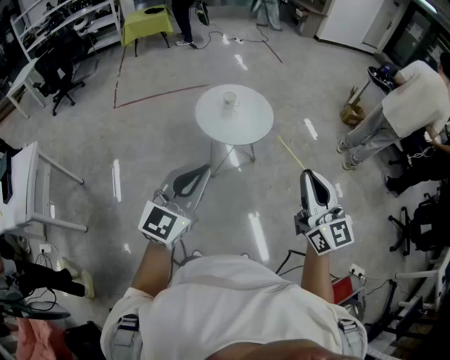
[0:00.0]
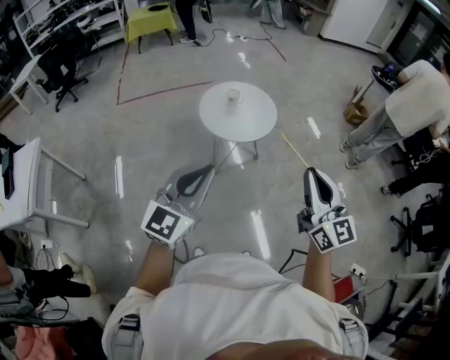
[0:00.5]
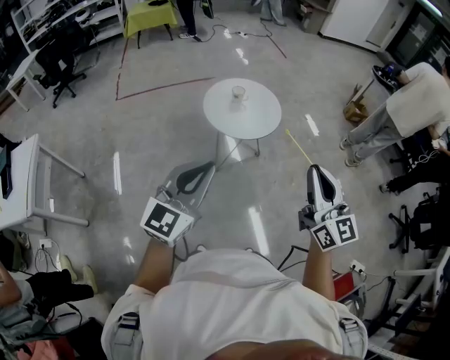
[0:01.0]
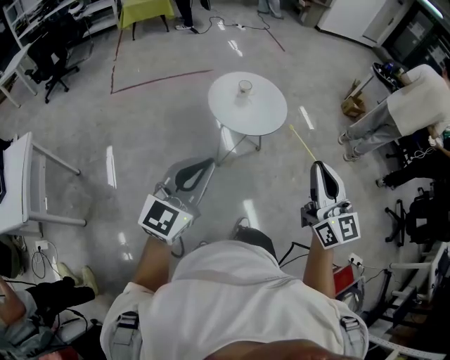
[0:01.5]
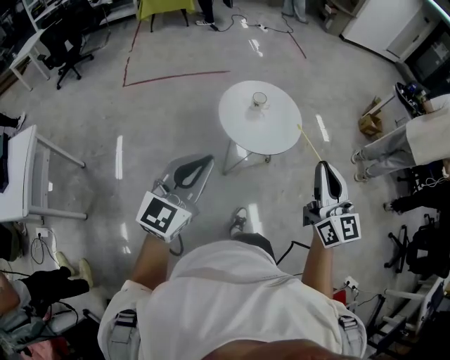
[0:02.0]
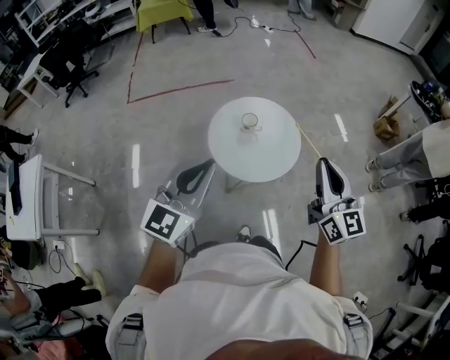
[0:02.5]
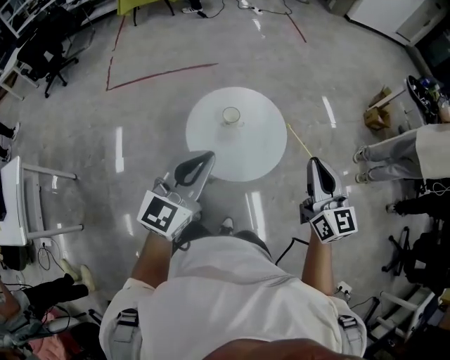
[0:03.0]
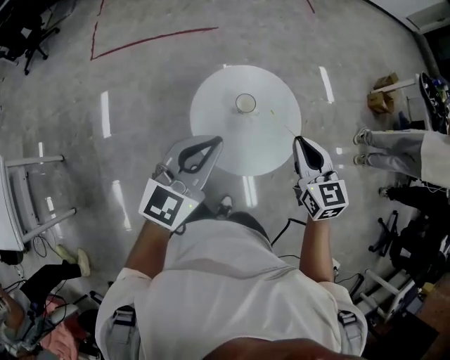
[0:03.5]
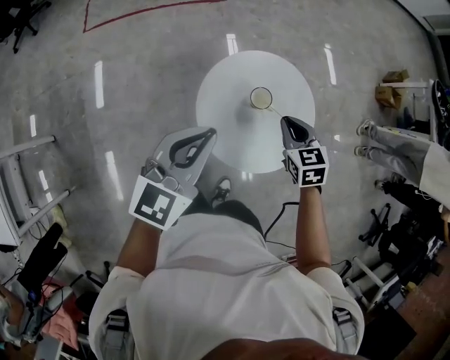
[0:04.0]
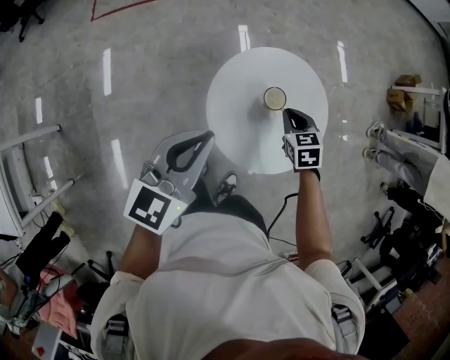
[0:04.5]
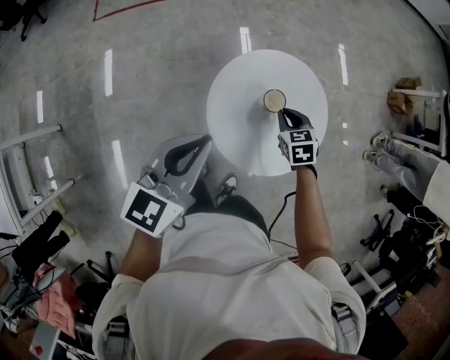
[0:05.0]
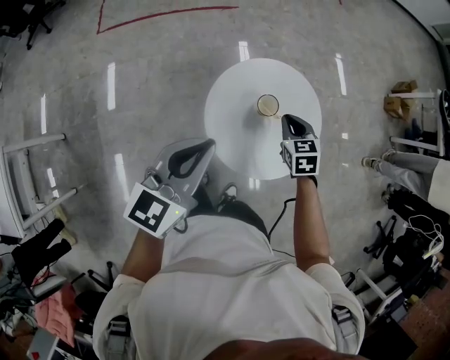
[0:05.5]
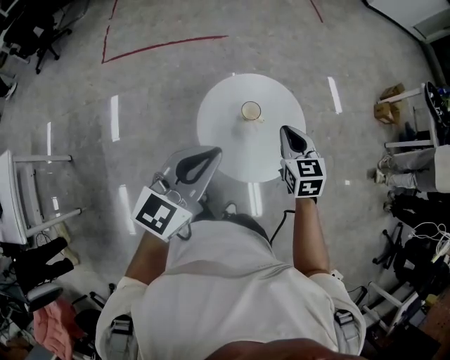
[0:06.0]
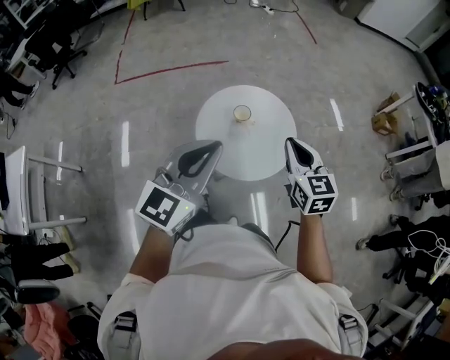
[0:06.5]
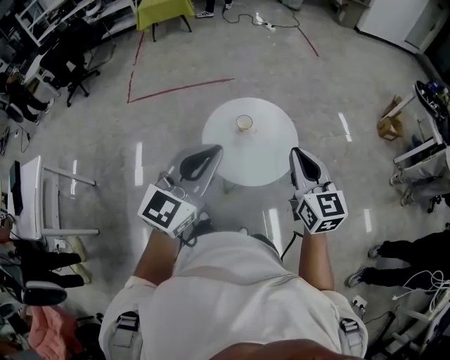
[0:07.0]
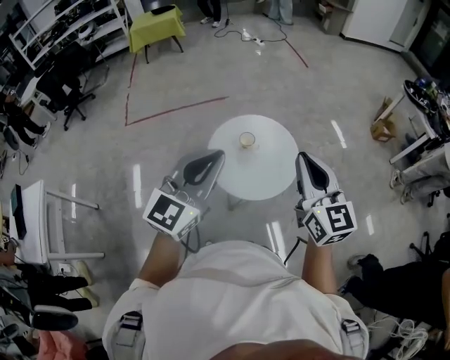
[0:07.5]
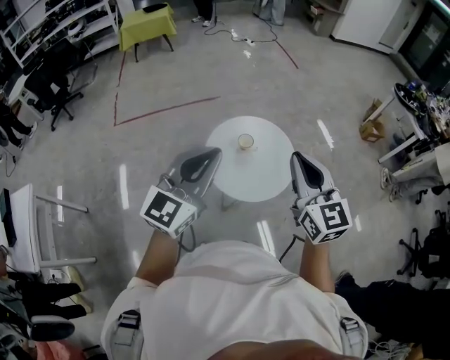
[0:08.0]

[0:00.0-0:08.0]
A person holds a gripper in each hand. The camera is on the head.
0:00.0 to 0:02.0: The two grippers go some 25 cm forward and to the left.
0:02.0 to 0:04.0: The two grippers travel together, forward, approximately 50 cm. The right gripper moves downward, about 35 cm, and tips its fingers downward by roughly 50 degrees.
0:04.0 to 0:06.0: The right gripper moves upward and backward, some 10 cm, while the left gripper travels backward, upward and to the right by about 15 cm.
0:06.0 to 0:08.0: The right gripper travels upward and backward by about 35 cm, and turns by approximately 30 degrees. Meanwhile the left gripper heads upward and backward, covering roughly 20 cm.

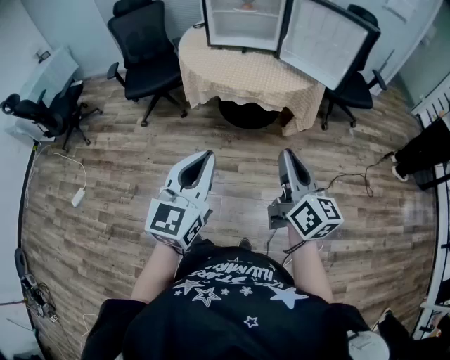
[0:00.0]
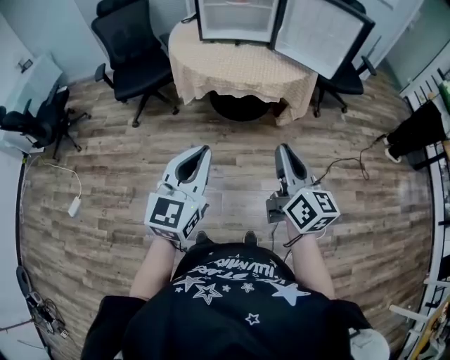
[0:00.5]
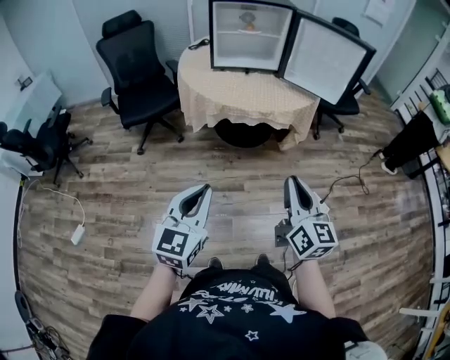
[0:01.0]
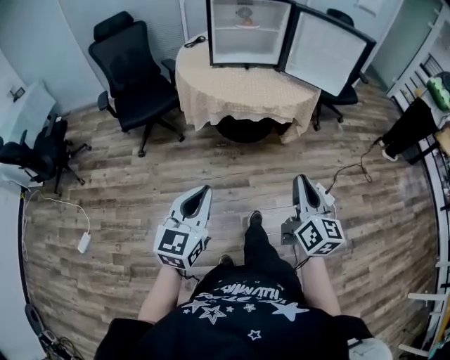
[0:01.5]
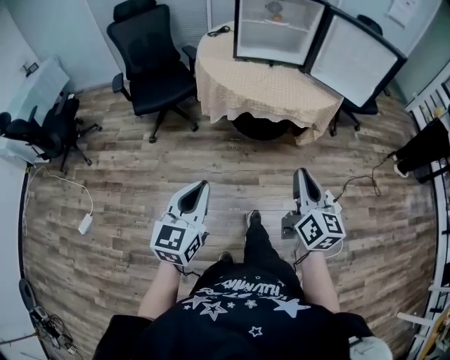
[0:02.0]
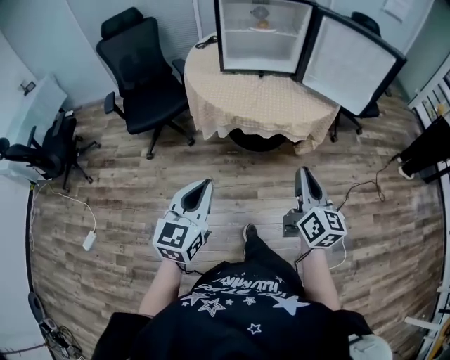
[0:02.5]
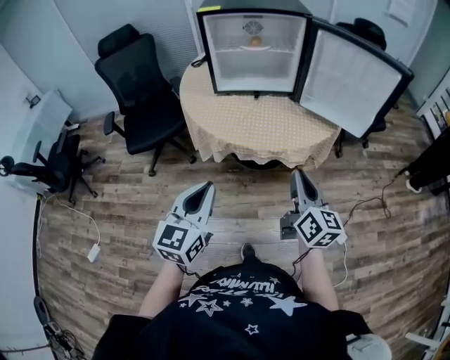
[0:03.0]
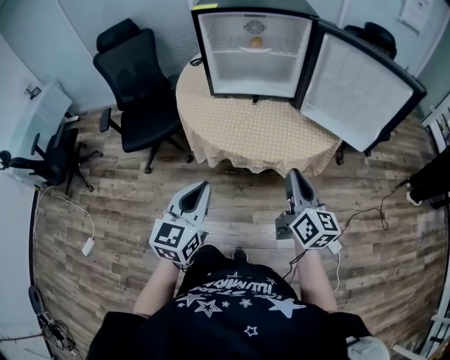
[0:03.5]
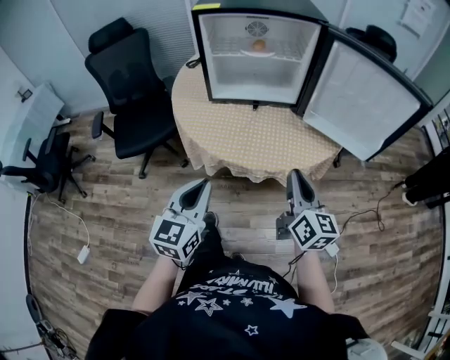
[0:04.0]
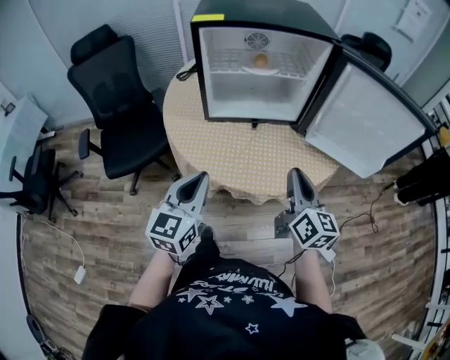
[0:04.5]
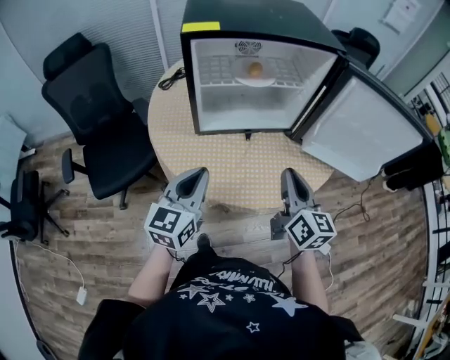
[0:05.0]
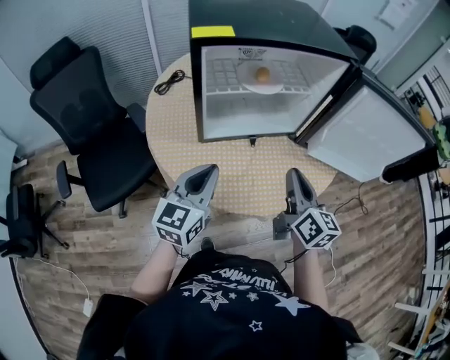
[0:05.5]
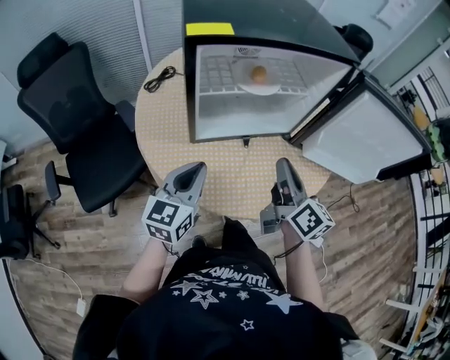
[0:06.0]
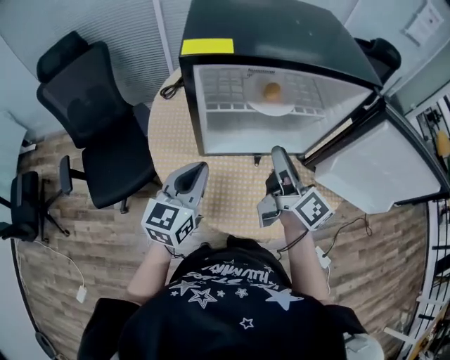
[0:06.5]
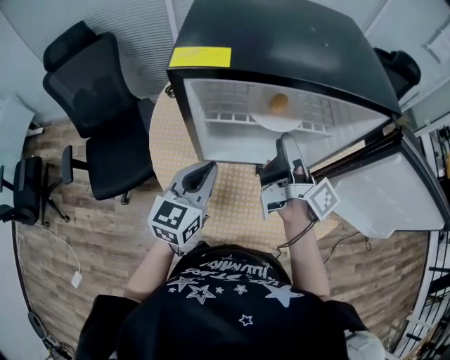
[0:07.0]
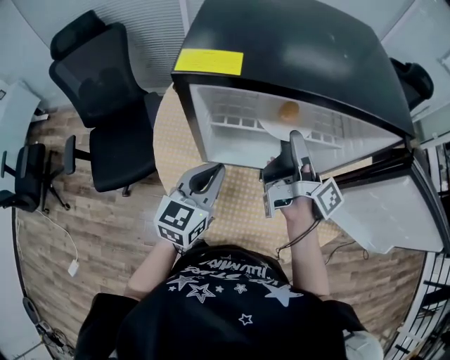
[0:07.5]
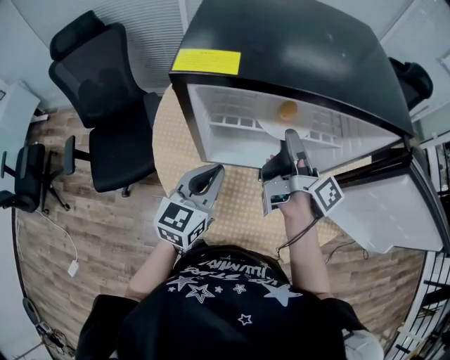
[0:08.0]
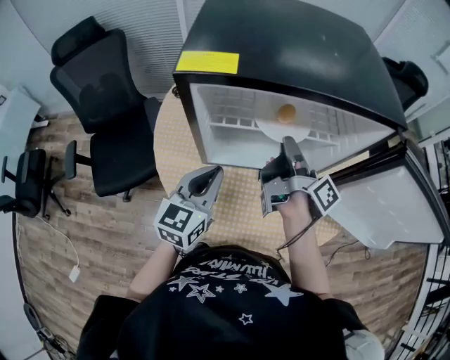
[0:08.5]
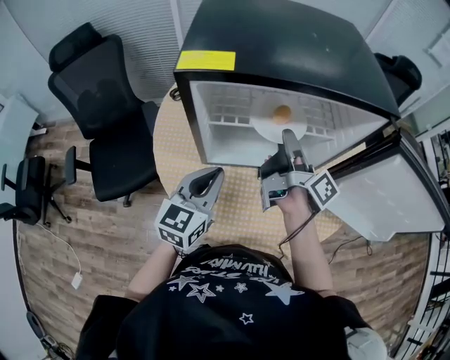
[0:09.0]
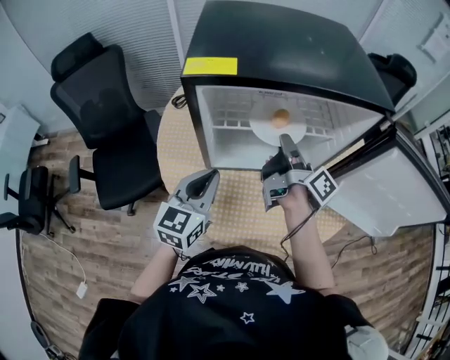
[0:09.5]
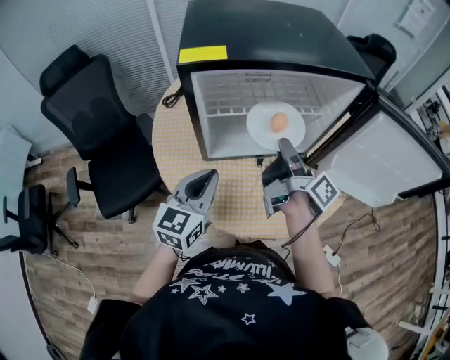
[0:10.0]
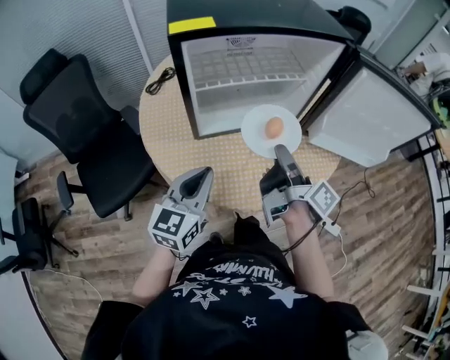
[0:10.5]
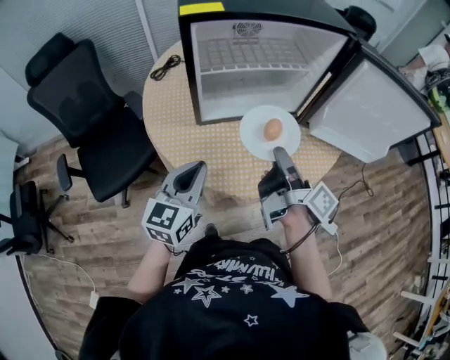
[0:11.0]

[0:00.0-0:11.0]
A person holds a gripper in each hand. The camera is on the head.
0:00.0 to 0:02.0: The two grippers go approximately 20 cm to the left.
0:02.0 to 0:03.5: The right gripper shifts roughly 30 cm forward. Meanwhile the left gripper is displaced forward and to the right by about 30 cm.
0:03.5 to 0:05.5: The left gripper goes approximately 30 cm forward, and swivels roughly 20 degrees. Meanwhile the right gripper travels forward and to the left by roughly 25 cm.
0:05.5 to 0:07.5: The left gripper heads forward, covering about 15 cm. The right gripper is displaced forward by about 25 cm, twists about 60 degrees clockwise, seen from behind, and opens up.
0:07.5 to 0:09.0: The right gripper closes and opens again.
0:09.0 to 0:11.0: The right gripper is displaced backward by roughly 25 cm, and closes up; the left gripper shifts roughly 15 cm backward.

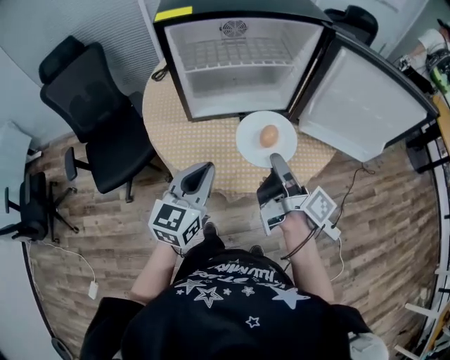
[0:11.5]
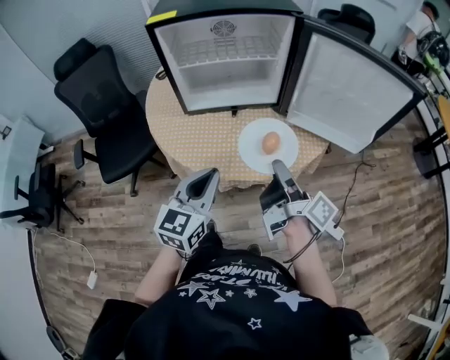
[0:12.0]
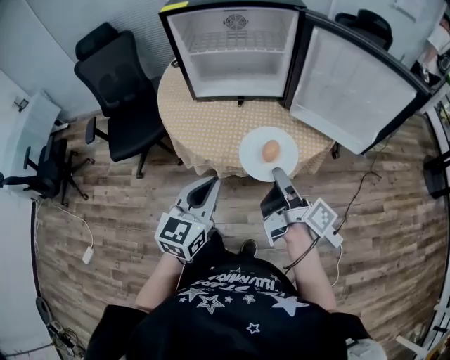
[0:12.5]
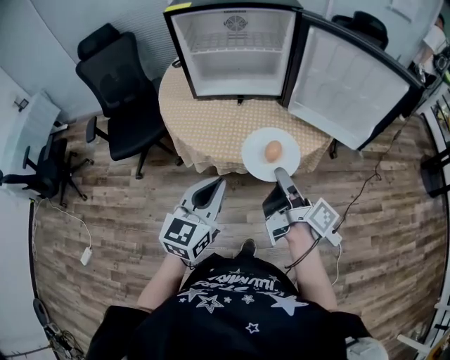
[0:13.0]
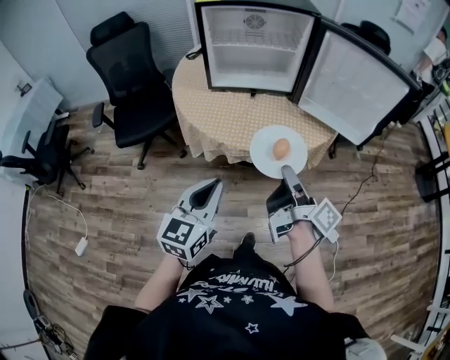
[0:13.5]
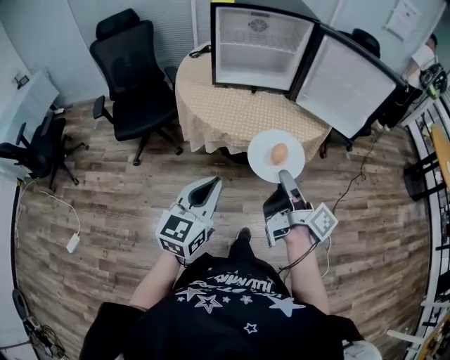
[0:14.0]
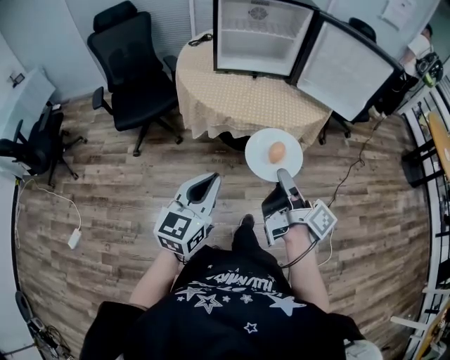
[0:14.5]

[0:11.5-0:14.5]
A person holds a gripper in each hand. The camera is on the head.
0:11.5 to 0:13.0: The grippers both shift backward and to the right by roughly 20 cm.
0:13.0 to 0:14.5: The two grippers go approximately 20 cm backward and to the left.

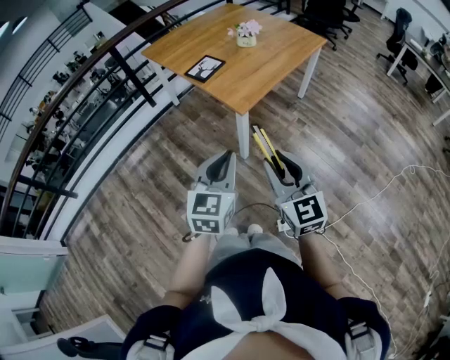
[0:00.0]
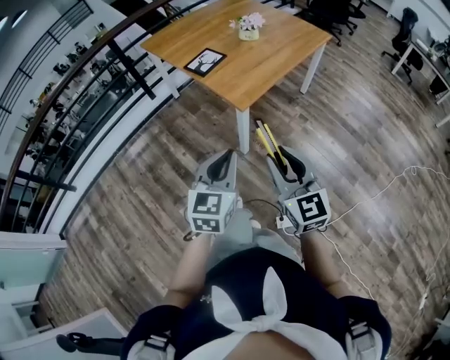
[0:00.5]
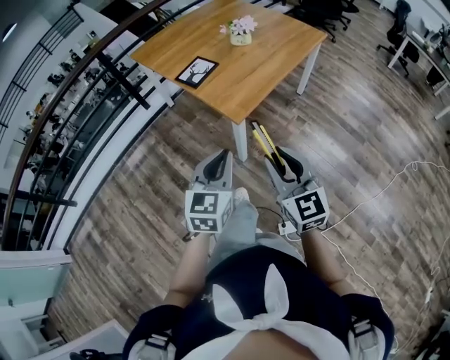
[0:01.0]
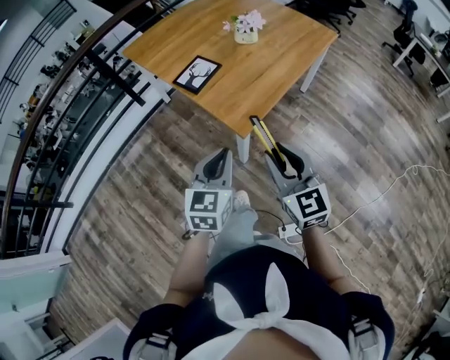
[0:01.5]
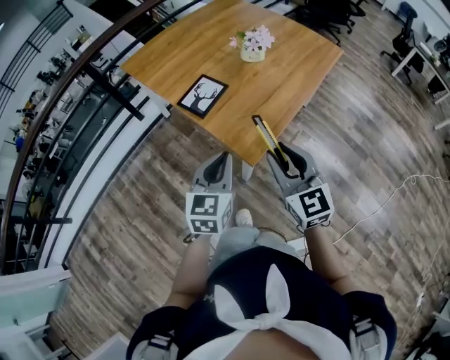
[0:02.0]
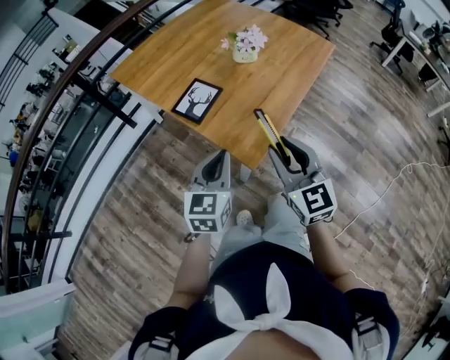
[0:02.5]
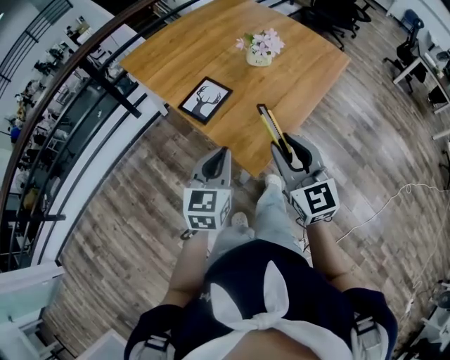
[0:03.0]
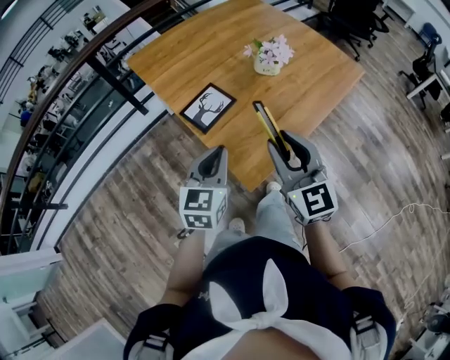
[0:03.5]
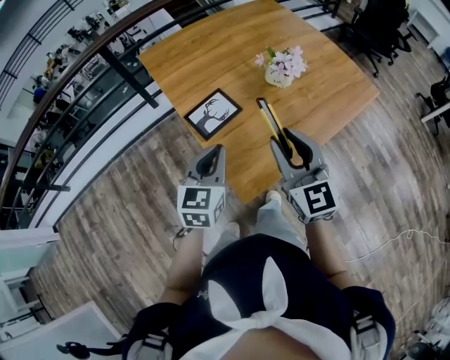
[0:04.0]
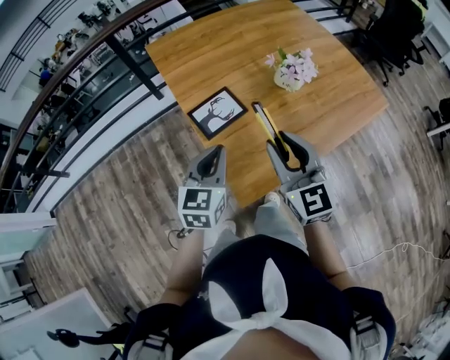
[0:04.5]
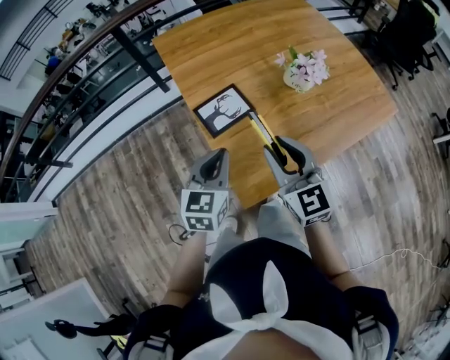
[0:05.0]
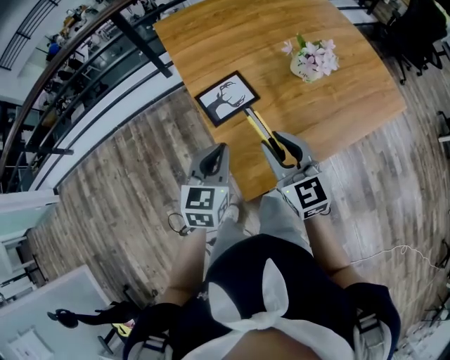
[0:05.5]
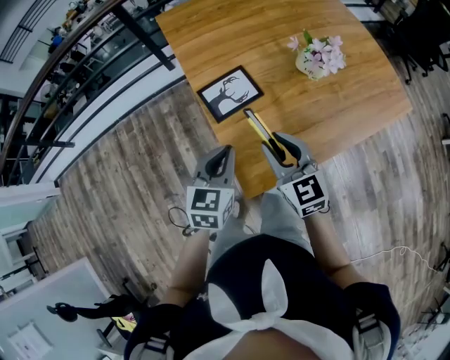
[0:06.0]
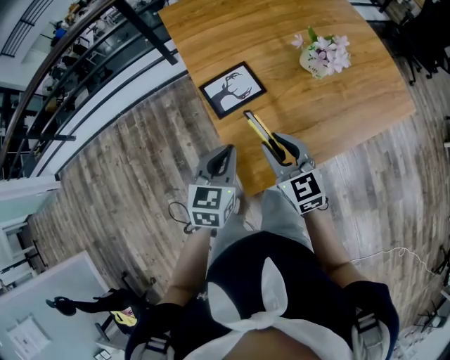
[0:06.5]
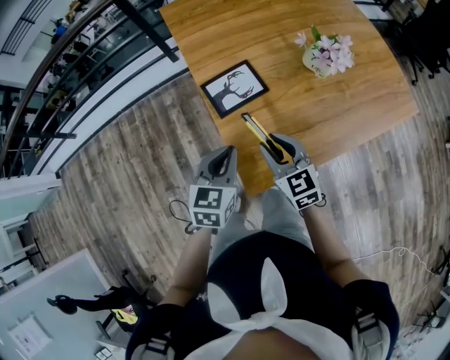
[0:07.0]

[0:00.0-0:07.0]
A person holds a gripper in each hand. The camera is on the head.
0:00.0 to 0:02.0: Both grippers travel together forward, some 35 cm.
0:02.0 to 0:03.5: The grippers both shift forward by approximately 15 cm.
0:03.5 to 0:05.0: The right gripper moves forward, some 10 cm; the left gripper travels forward by about 5 cm.
0:05.0 to 0:07.0: The right gripper moves downward, about 15 cm. The left gripper travels downward by roughly 5 cm.
